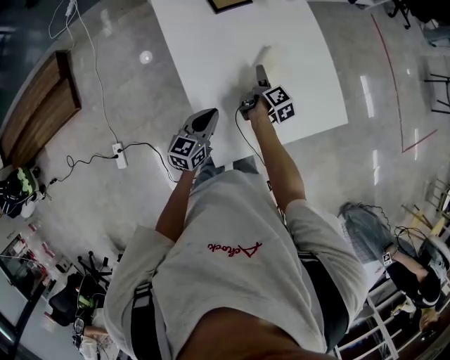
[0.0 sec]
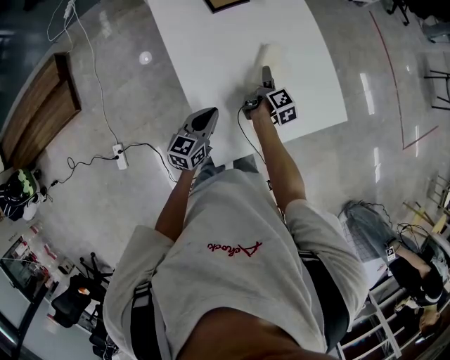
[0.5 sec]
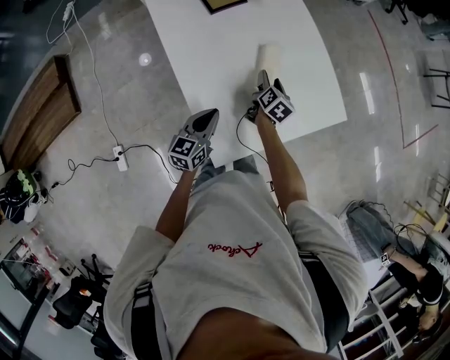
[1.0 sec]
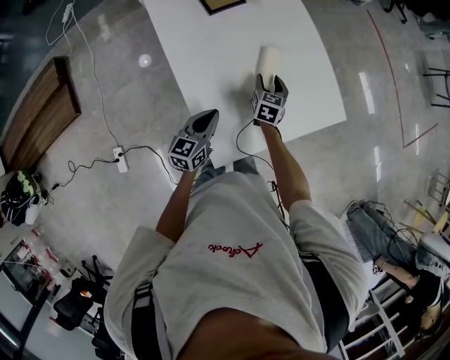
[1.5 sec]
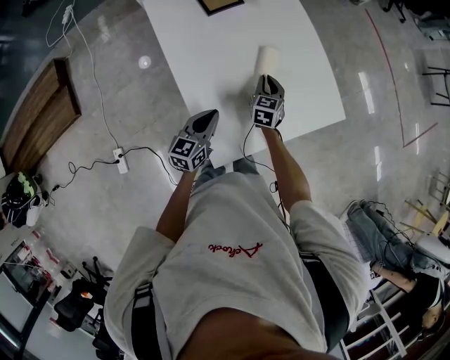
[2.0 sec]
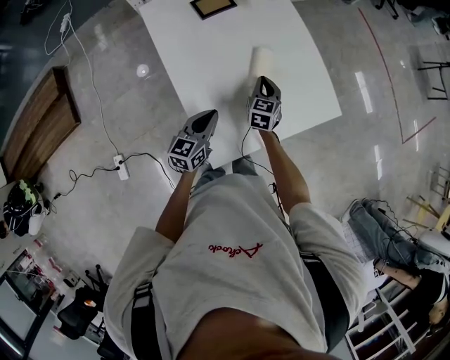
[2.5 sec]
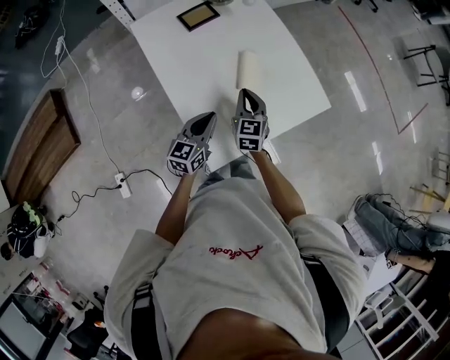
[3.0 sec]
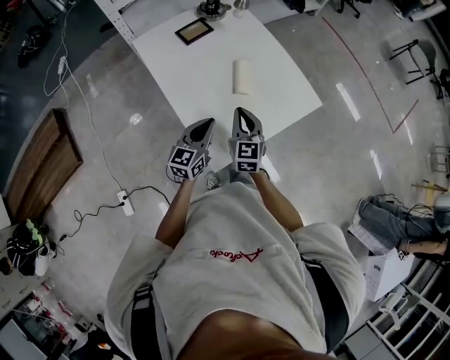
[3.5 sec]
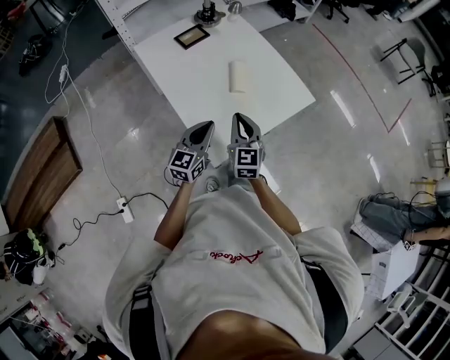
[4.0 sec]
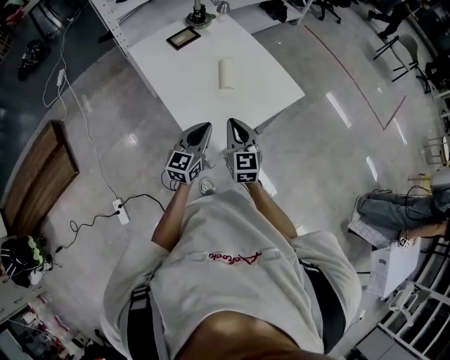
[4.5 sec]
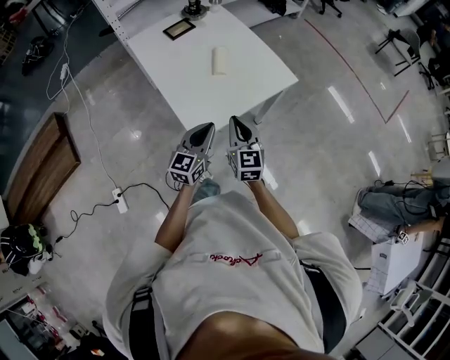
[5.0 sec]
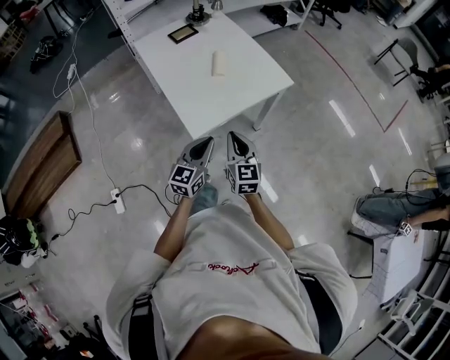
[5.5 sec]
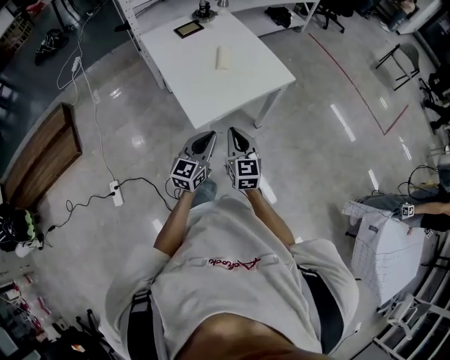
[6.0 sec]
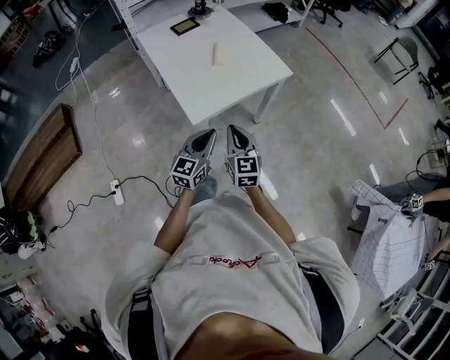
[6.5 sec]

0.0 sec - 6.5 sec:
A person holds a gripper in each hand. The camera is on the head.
0.0 sec - 2.0 sec: The right gripper rolls counterclockwise, seen from behind, by approximately 70 degrees, and closes.
2.0 sec - 4.5 sec: The left gripper moves upward, backward and to the right, approximately 15 cm, and changes its angle by about 20 degrees. Meanwhile the right gripper goes approximately 30 cm backward and upward, and rotates some 30 degrees.
4.5 sec - 6.5 sec: The grippers both shift backward and to the right by some 20 cm.

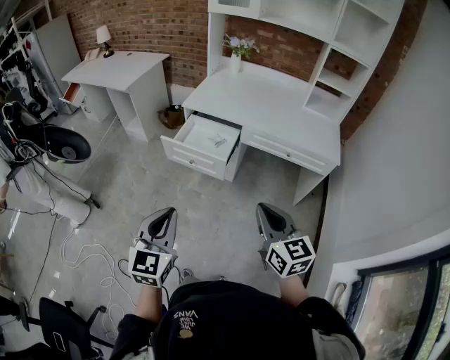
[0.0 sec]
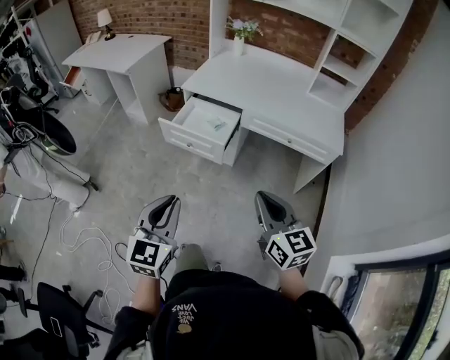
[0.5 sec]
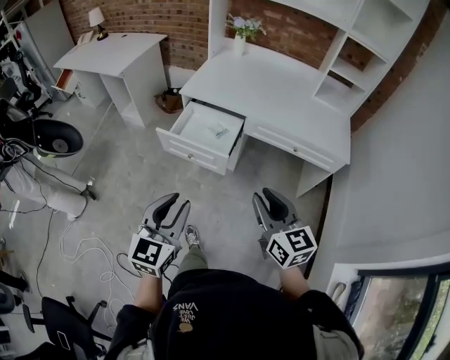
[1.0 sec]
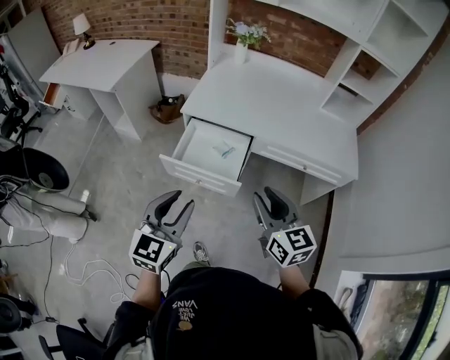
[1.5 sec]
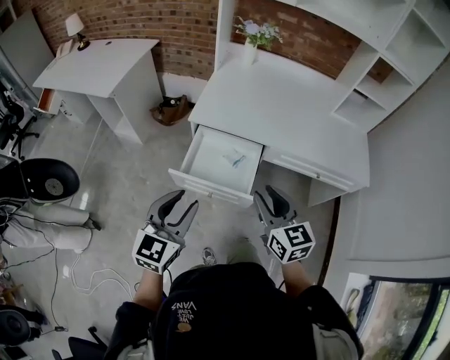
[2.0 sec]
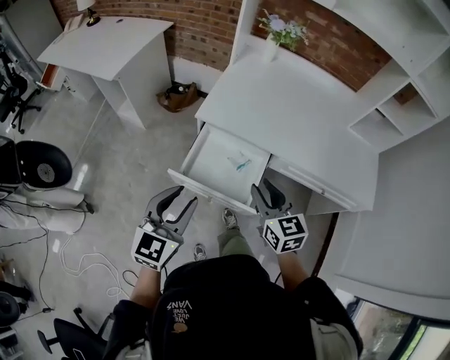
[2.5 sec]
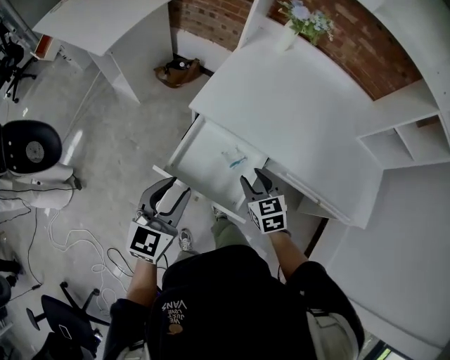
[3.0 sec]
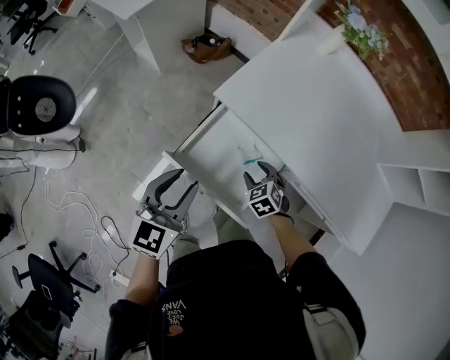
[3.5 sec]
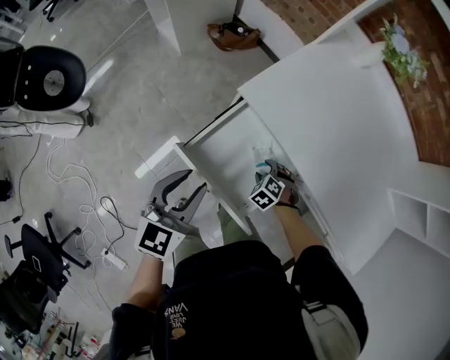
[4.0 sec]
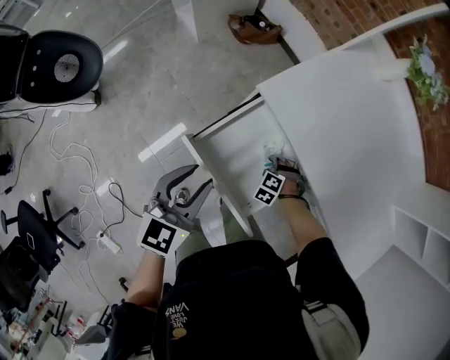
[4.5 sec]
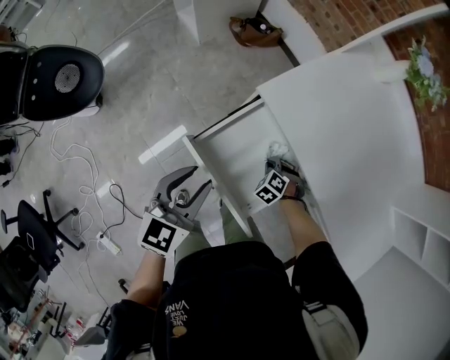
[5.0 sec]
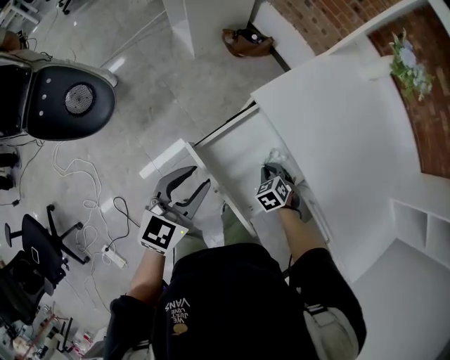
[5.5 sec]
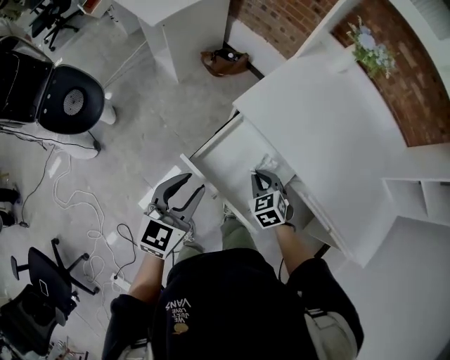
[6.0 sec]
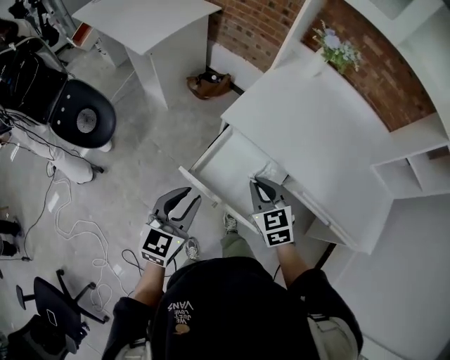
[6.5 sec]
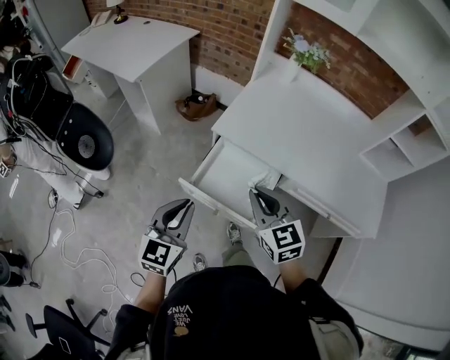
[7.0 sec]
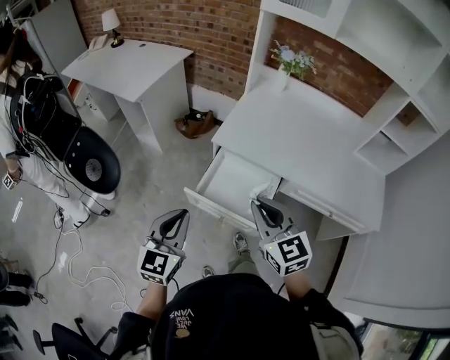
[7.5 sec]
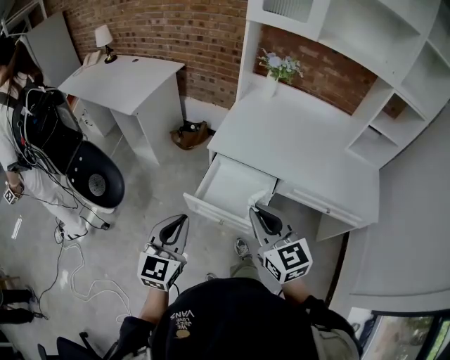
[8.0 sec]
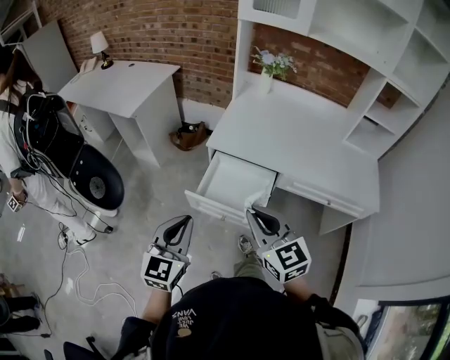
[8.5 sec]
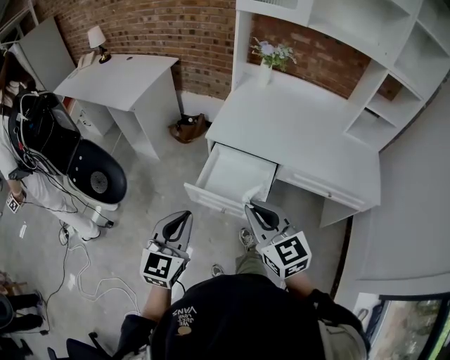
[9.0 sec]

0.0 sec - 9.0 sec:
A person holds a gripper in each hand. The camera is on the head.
0.0 sec - 2.0 sec: The right gripper is displaced forward and to the left by approximately 35 cm, and opens its fingers. Meanwhile the left gripper moves forward, approximately 35 cm, and opens its fingers.
2.0 sec - 4.5 sec: The right gripper goes some 50 cm downward, and angles its fingers downward, by approximately 60 degrees. The left gripper ends up some 25 cm from where it was, and turns by approximately 30 degrees.
4.5 sec - 7.0 sec: The right gripper travels upward by some 40 cm, tilts its fingers roughly 60 degrees upward, and closes up, while the left gripper is displaced upward by approximately 10 cm, and closes its fingers.
7.0 sec - 9.0 sec: The left gripper goes approximately 10 cm backward. The right gripper moves backward and upward, approximately 15 cm.

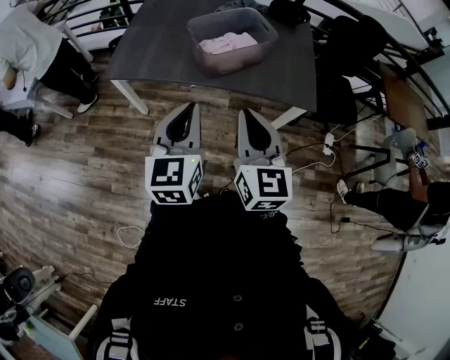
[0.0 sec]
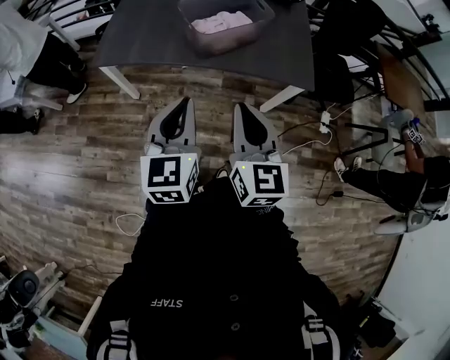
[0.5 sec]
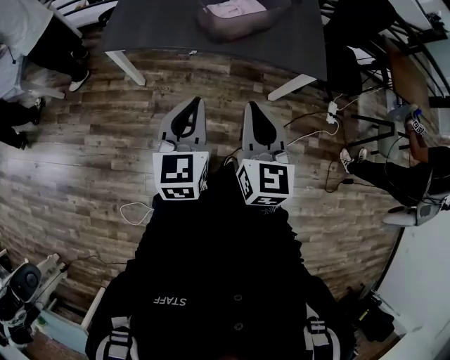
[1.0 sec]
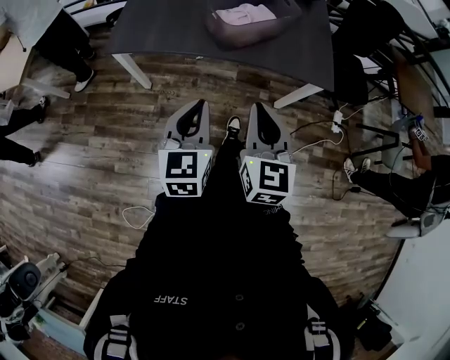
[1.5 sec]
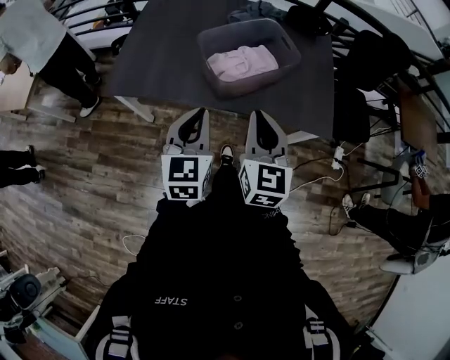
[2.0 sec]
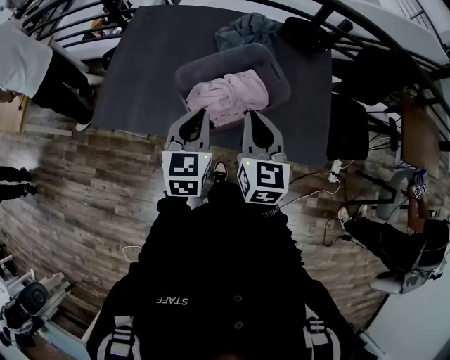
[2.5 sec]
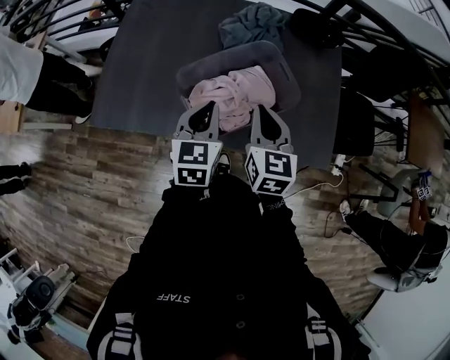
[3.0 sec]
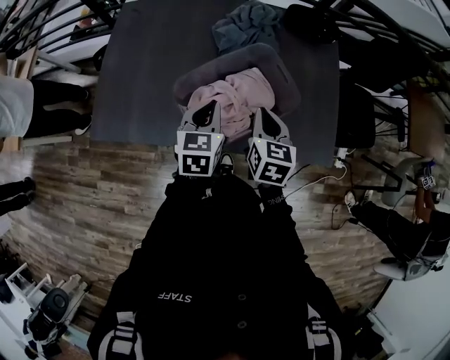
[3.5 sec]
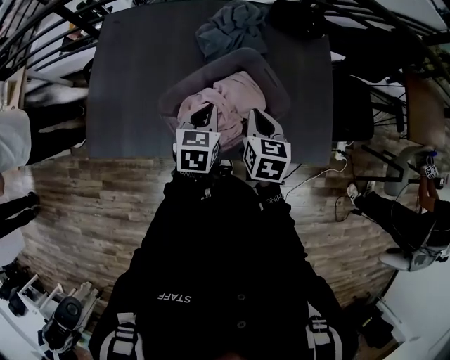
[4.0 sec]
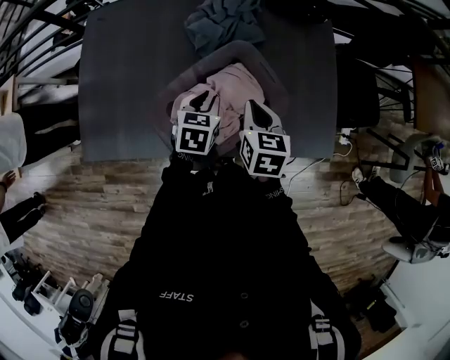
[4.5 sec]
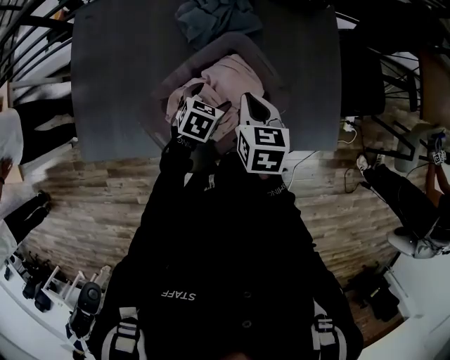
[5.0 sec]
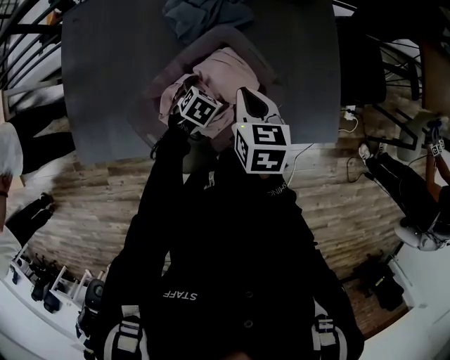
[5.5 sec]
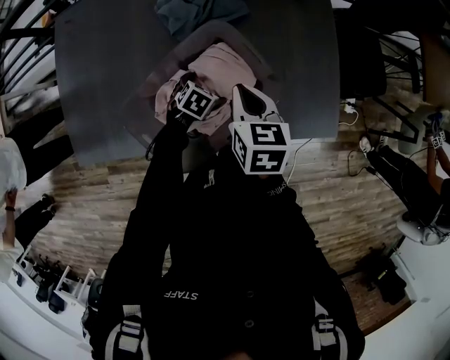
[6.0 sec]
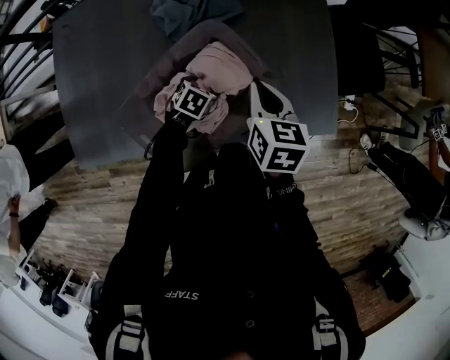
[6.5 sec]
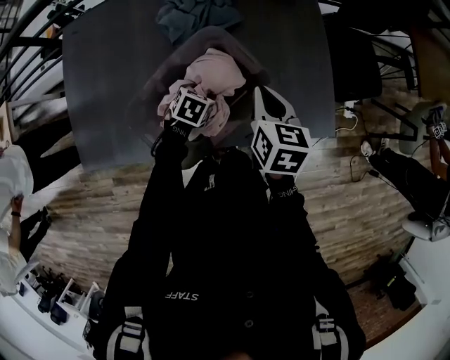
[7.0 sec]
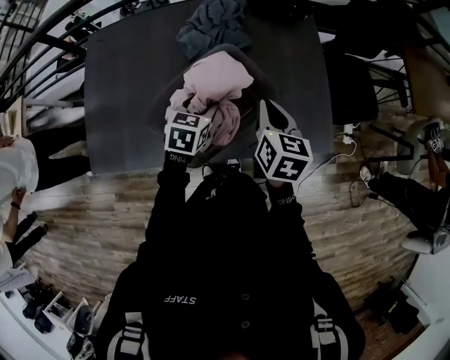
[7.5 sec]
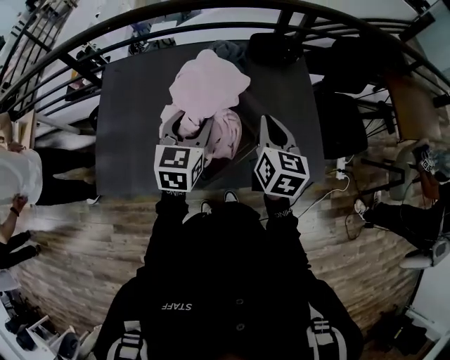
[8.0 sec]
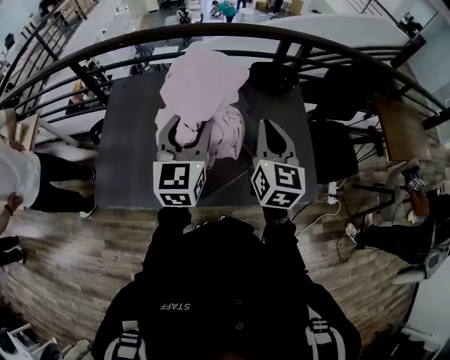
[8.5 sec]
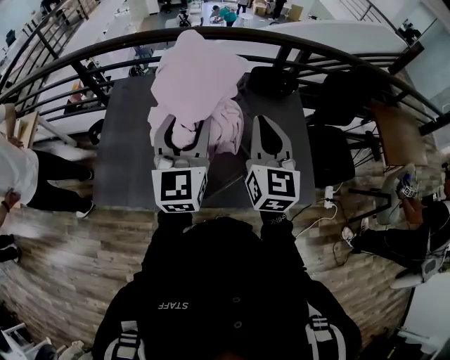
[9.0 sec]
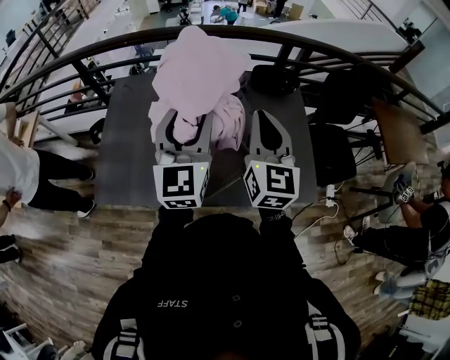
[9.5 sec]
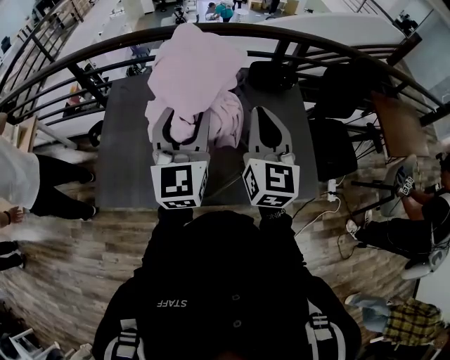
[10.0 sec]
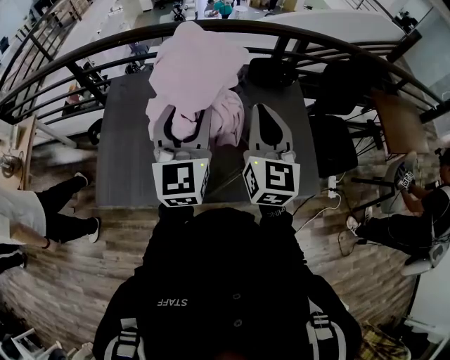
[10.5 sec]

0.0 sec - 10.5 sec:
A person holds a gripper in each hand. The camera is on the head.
0.0 sec - 2.0 sec: The grippers both shift forward and downward by roughly 20 cm.
2.0 sec - 4.0 sec: The right gripper shifts approximately 35 cm forward and downward, and swivels some 30 degrees, while the left gripper travels forward by some 30 cm, and rotates approximately 30 degrees.
4.0 sec - 6.5 sec: The right gripper travels forward and to the right by some 10 cm; the left gripper heads downward, covering about 25 cm, swivels approximately 40 degrees, and opens its fingers.
6.5 sec - 8.5 sec: The left gripper moves upward, about 50 cm, and tips its fingers upward by about 60 degrees. The right gripper heads upward, covering some 25 cm, and tips its fingers upward by some 40 degrees.
8.5 sec - 10.5 sec: The left gripper shifts by some 5 cm, while the right gripper moves some 5 cm.
